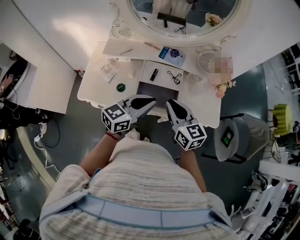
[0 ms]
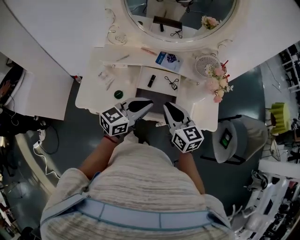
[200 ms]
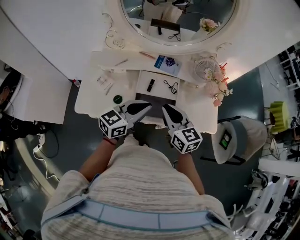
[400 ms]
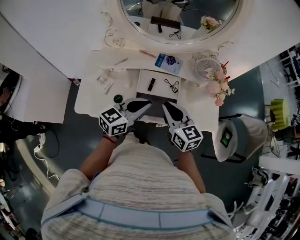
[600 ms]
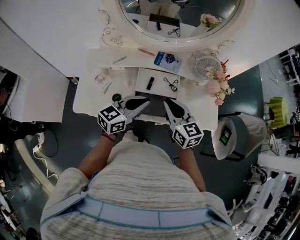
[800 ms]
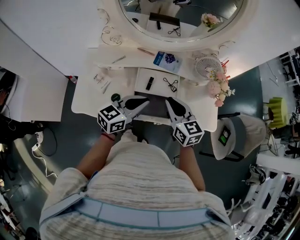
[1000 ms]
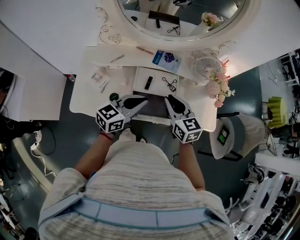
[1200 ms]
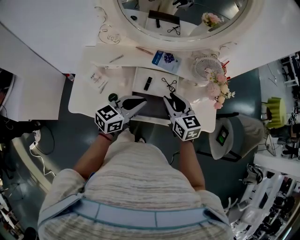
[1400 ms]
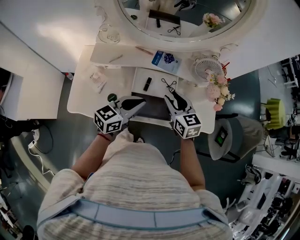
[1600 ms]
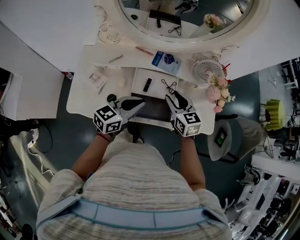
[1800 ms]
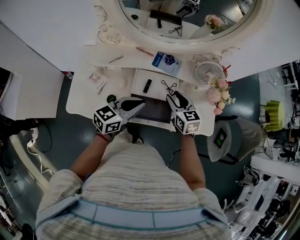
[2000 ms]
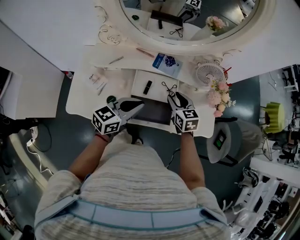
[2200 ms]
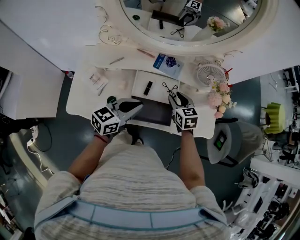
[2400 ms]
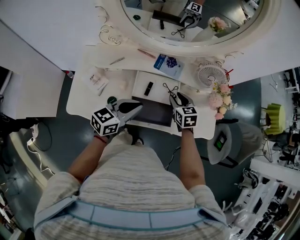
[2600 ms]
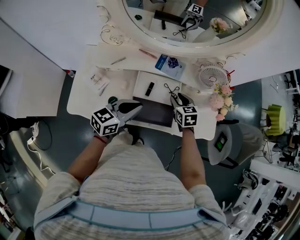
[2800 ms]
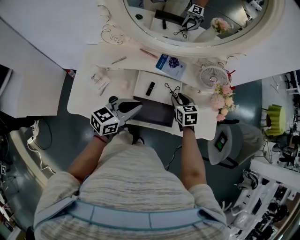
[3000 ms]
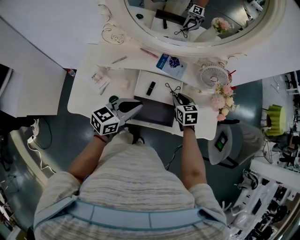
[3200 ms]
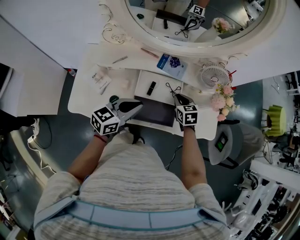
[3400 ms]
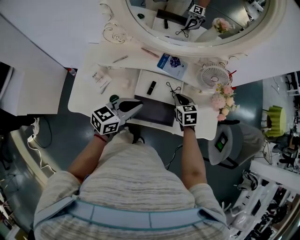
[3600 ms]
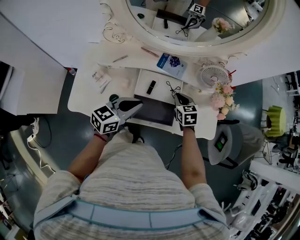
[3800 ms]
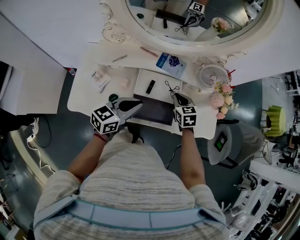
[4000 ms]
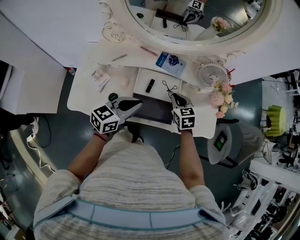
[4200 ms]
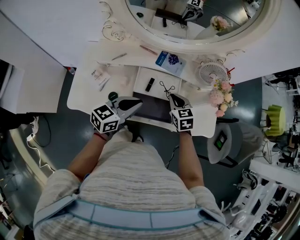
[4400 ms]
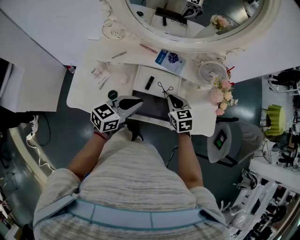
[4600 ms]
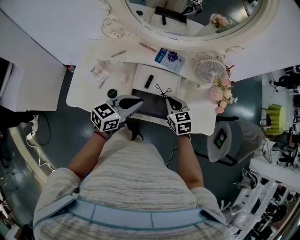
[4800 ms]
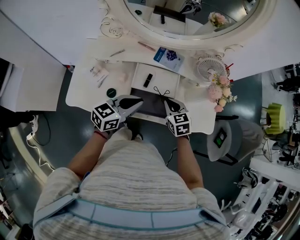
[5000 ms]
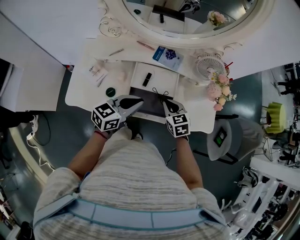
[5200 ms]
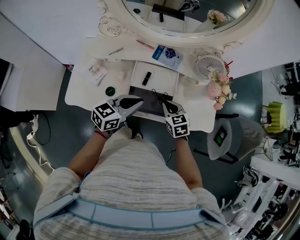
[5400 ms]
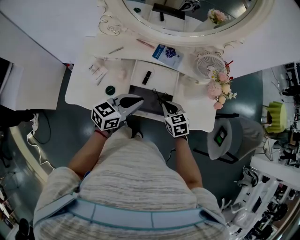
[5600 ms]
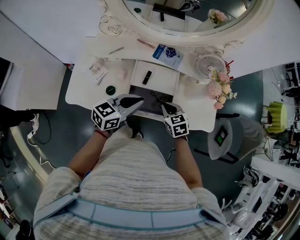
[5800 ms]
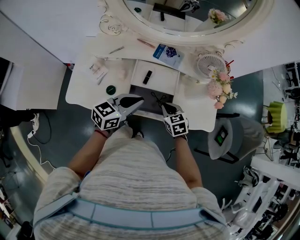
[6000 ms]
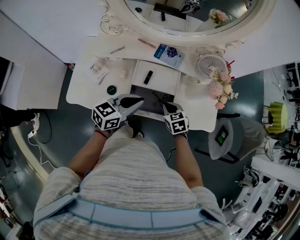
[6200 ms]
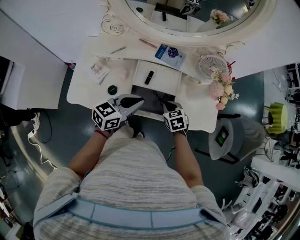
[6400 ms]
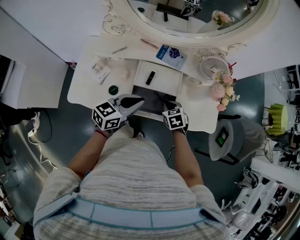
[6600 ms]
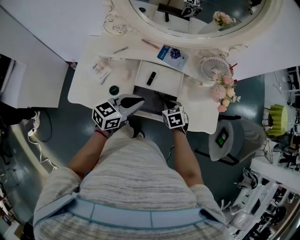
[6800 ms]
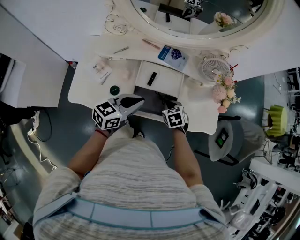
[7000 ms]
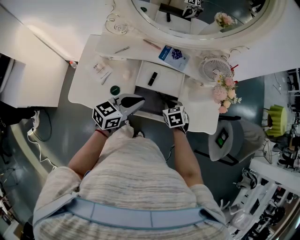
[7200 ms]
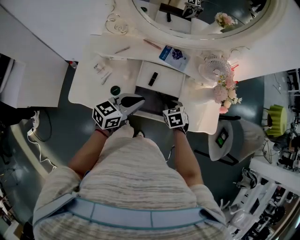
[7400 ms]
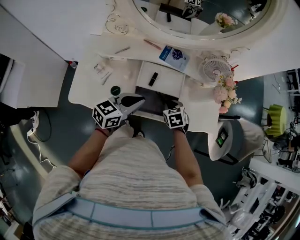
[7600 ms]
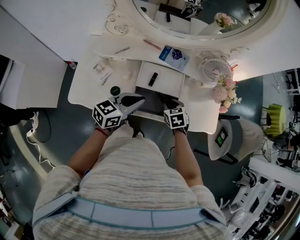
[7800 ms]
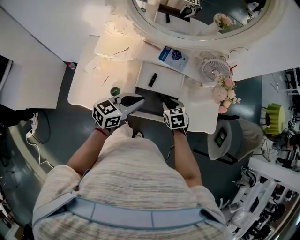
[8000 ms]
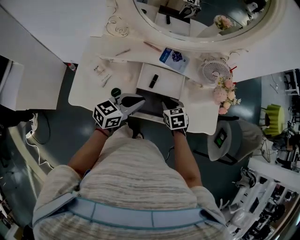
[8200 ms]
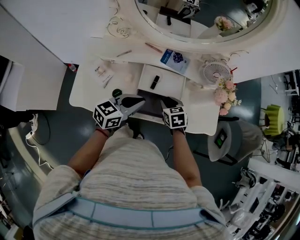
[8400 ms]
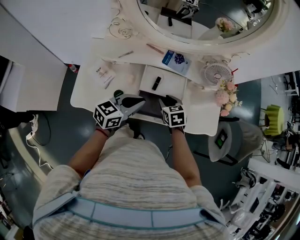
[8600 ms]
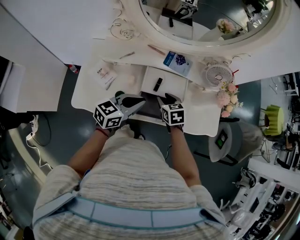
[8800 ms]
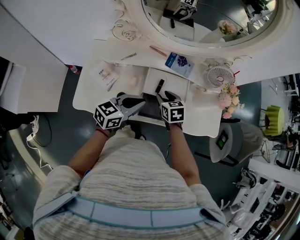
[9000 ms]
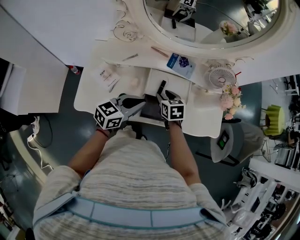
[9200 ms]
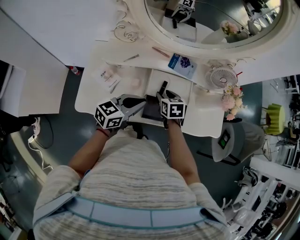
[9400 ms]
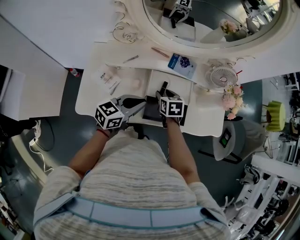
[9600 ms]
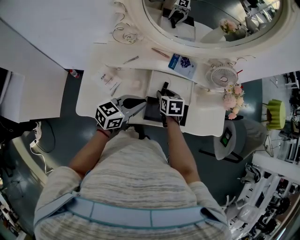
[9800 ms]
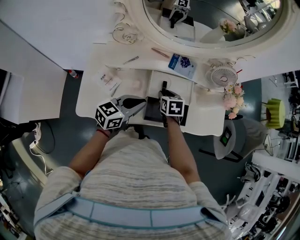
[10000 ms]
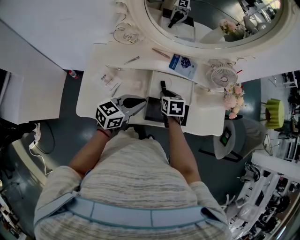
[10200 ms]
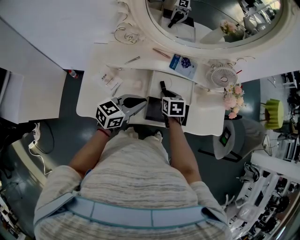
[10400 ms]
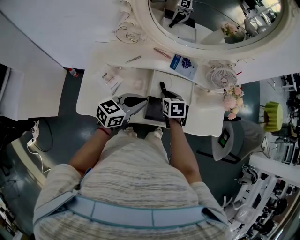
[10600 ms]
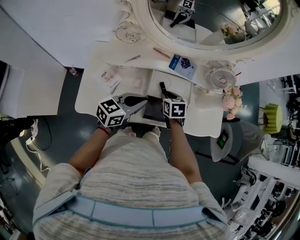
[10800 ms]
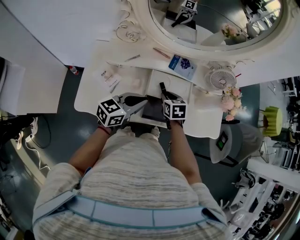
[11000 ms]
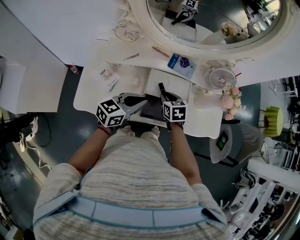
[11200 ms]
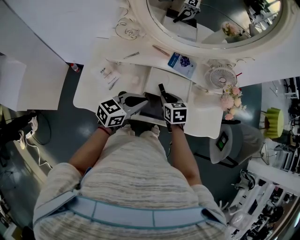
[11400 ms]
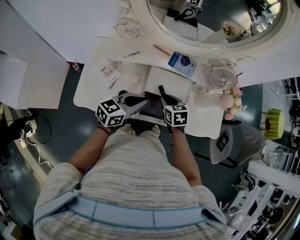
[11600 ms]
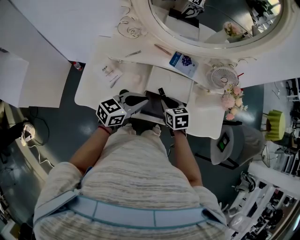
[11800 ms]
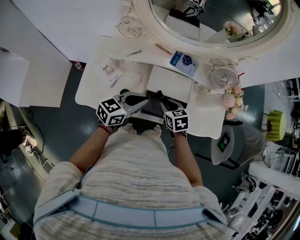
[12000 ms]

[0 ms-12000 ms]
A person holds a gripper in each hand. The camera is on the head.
0 ms to 1600 ms: The right gripper travels forward and downward by about 15 cm, and opens its fingers, while the left gripper moves forward, about 5 cm.
1600 ms to 3000 ms: The right gripper travels downward and forward by some 15 cm.
3000 ms to 4400 ms: The right gripper changes place by approximately 5 cm, and closes.
4400 ms to 6000 ms: The right gripper goes some 10 cm backward and downward.
6000 ms to 7600 ms: The grippers move only a little.
7600 ms to 9000 ms: The right gripper shifts about 10 cm to the left and upward, and opens.
9000 ms to 10400 ms: The grippers move only a little.
10400 ms to 12000 ms: The right gripper moves backward, about 5 cm.

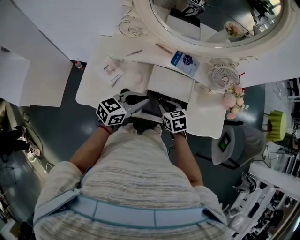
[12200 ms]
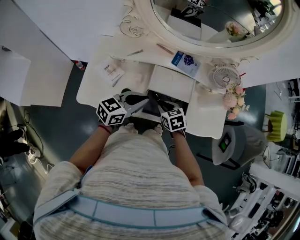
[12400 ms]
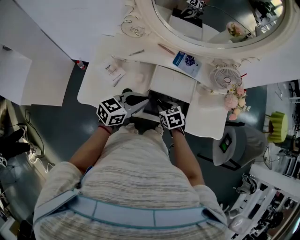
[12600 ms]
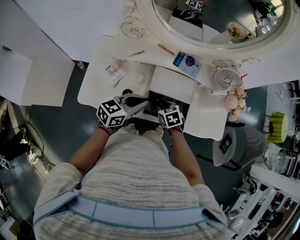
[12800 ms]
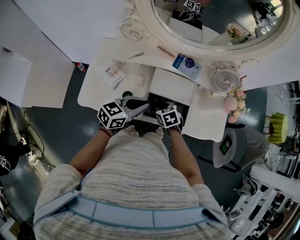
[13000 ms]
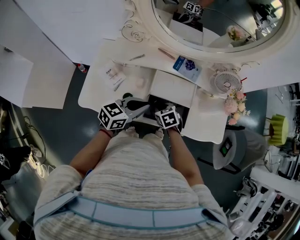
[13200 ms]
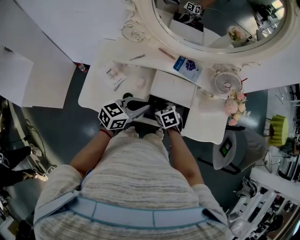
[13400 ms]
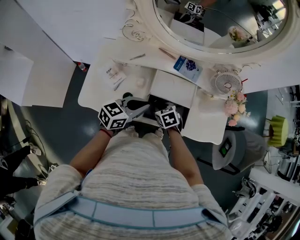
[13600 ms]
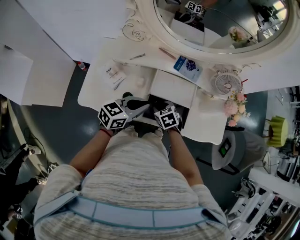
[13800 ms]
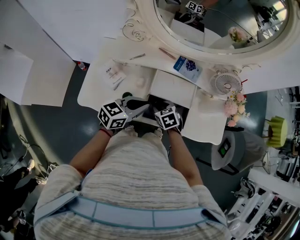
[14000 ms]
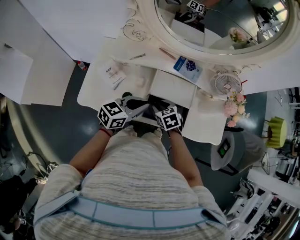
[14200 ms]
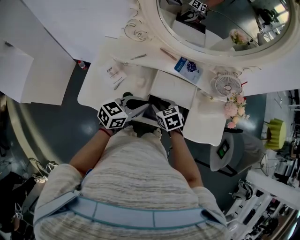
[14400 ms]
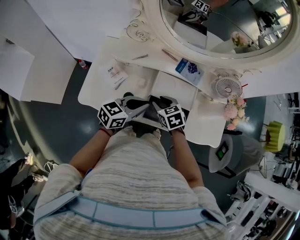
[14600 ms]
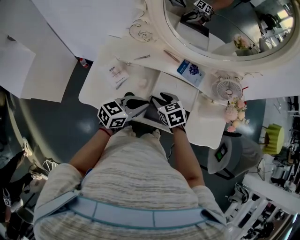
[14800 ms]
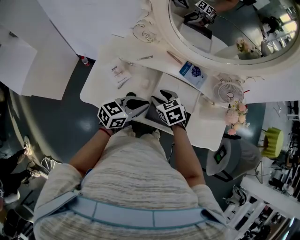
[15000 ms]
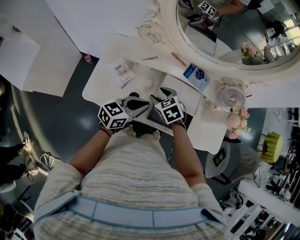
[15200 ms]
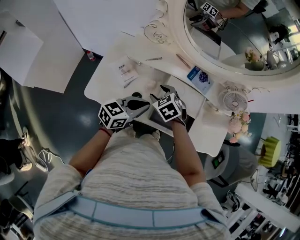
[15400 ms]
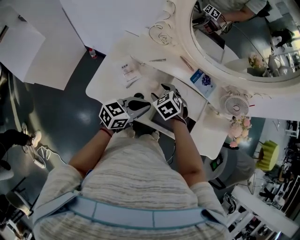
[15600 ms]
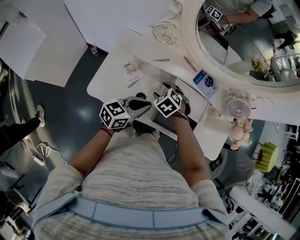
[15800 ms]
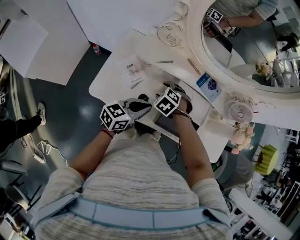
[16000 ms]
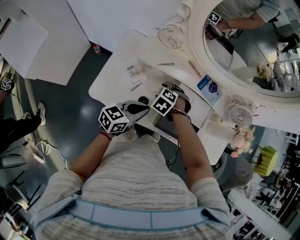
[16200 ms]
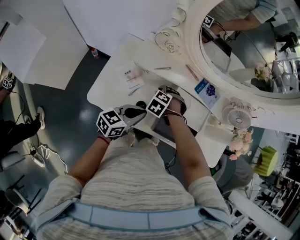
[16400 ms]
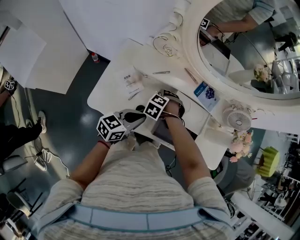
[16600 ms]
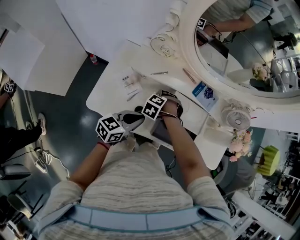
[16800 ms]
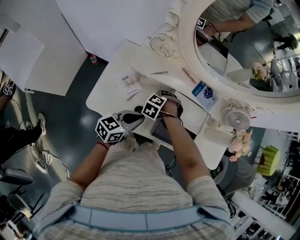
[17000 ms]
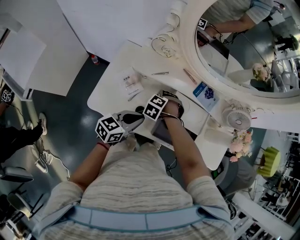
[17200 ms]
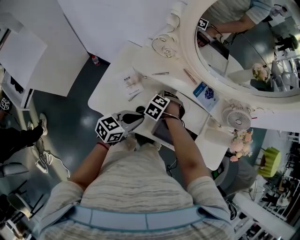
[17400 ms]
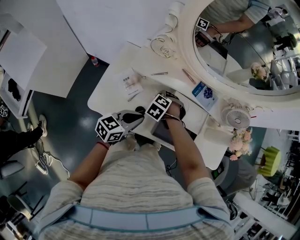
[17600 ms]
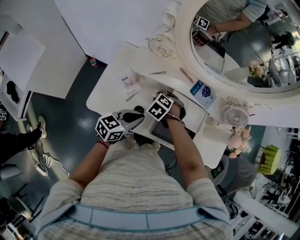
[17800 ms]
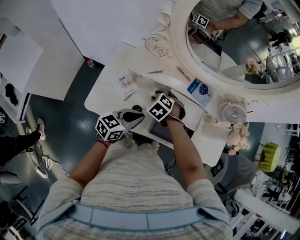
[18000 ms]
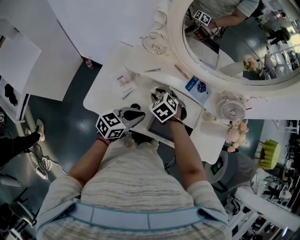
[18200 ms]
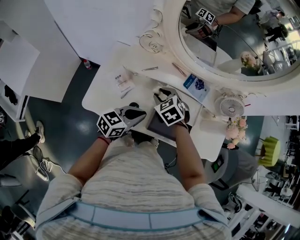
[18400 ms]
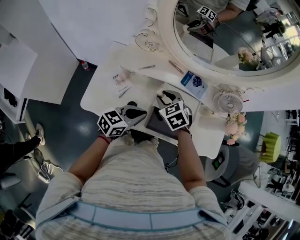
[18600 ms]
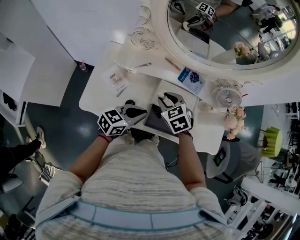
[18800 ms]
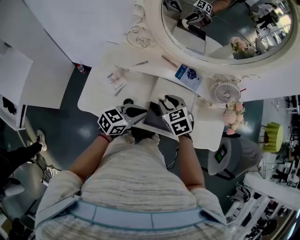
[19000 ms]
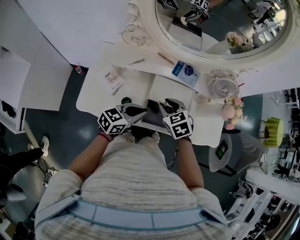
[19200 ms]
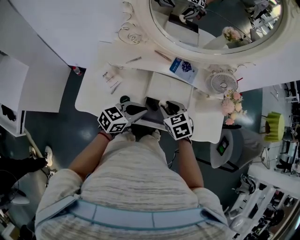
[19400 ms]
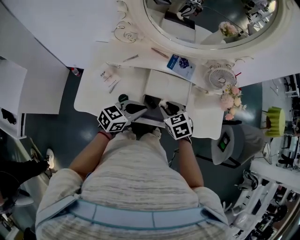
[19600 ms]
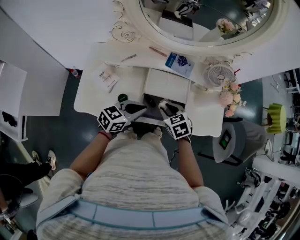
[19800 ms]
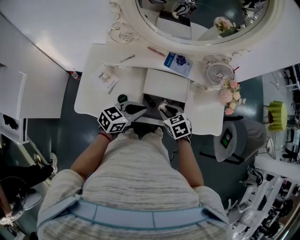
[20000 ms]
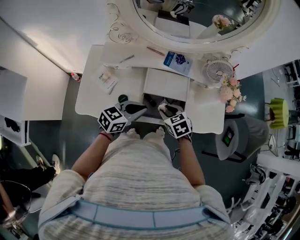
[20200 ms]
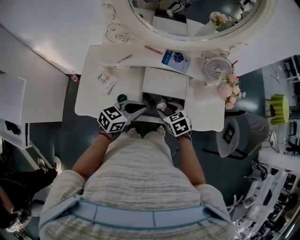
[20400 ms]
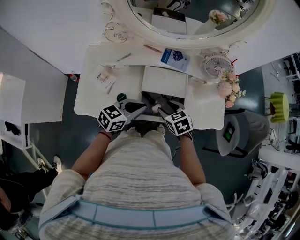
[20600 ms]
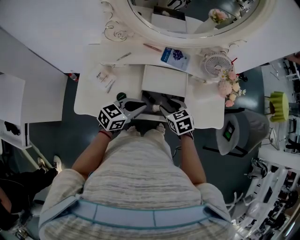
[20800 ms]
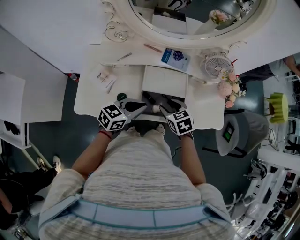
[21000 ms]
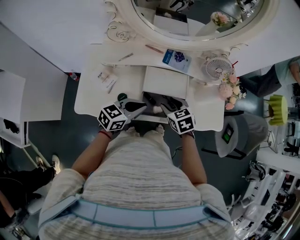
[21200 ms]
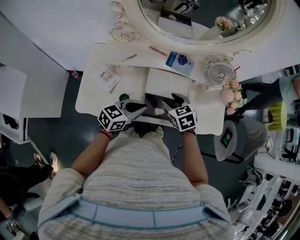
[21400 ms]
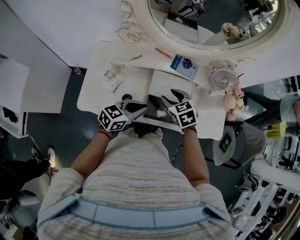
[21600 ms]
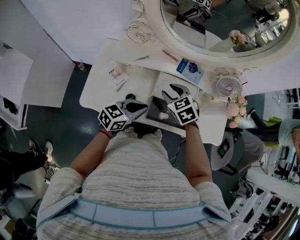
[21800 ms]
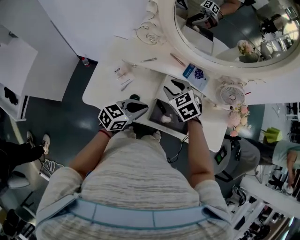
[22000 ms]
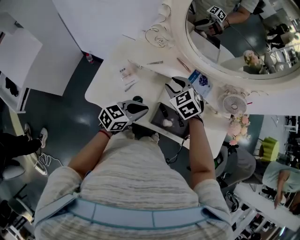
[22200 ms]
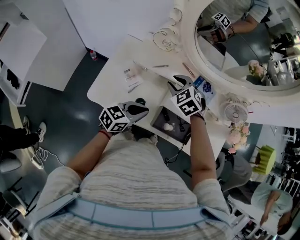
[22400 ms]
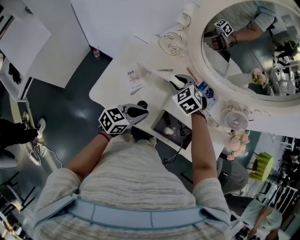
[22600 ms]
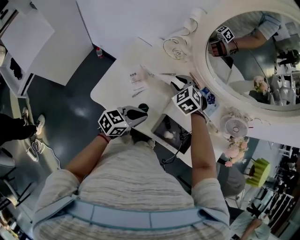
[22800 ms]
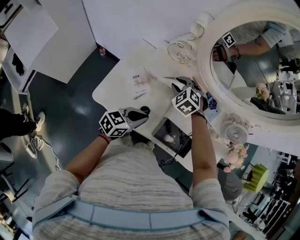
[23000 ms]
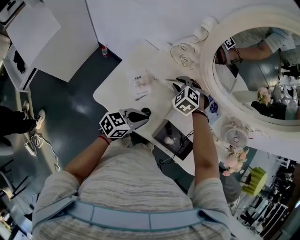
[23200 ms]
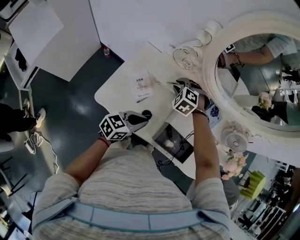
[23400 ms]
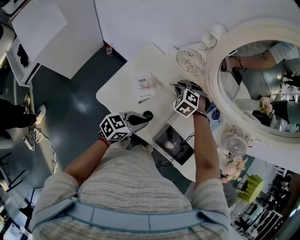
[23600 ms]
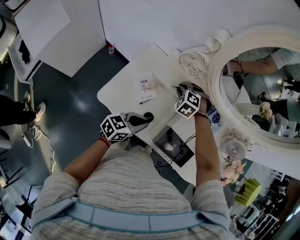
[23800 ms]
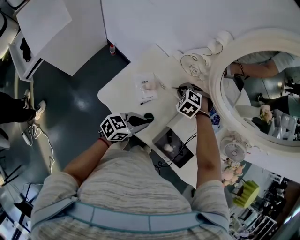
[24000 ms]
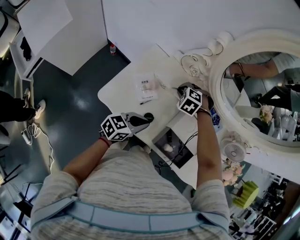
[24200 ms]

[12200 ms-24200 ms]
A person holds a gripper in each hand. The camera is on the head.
12200 ms to 13800 ms: The right gripper moves about 5 cm.
13800 ms to 15200 ms: The right gripper is displaced upward and to the left by roughly 10 cm.
15200 ms to 16600 ms: The left gripper shifts by some 5 cm, while the right gripper goes roughly 10 cm downward, and turns by about 50 degrees.
16600 ms to 18200 ms: The right gripper heads upward, covering approximately 10 cm, rotates some 30 degrees, and closes its fingers.
18200 ms to 19800 ms: The right gripper travels to the right and backward by roughly 20 cm, and changes its angle by about 30 degrees, while the left gripper shifts roughly 10 cm to the right.
19800 ms to 21200 ms: The grippers move only a little.
21200 ms to 22600 ms: The right gripper heads to the left and forward, covering approximately 25 cm, and twists roughly 50 degrees counterclockwise, seen from behind. Meanwhile the left gripper is displaced to the left by about 10 cm.
22600 ms to 24200 ms: The right gripper is displaced downward by some 10 cm, turns by approximately 40 degrees, and closes.
